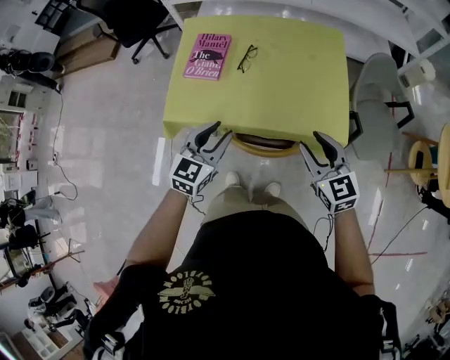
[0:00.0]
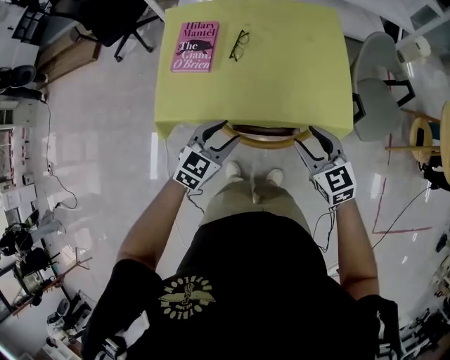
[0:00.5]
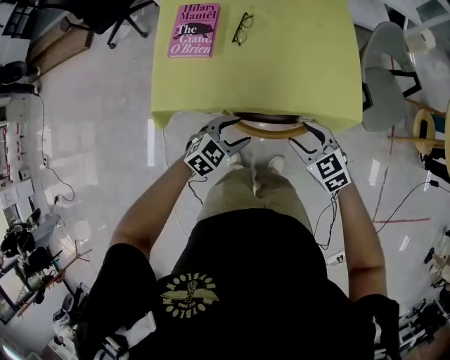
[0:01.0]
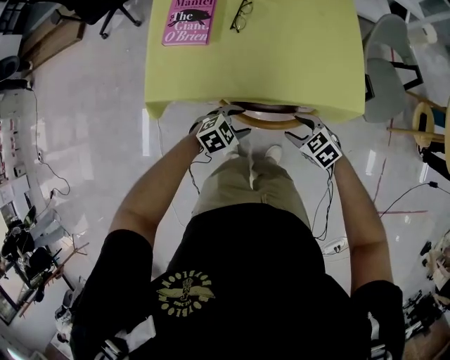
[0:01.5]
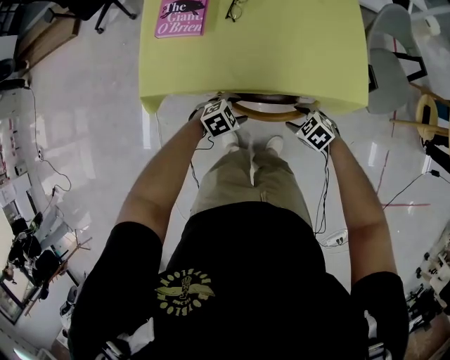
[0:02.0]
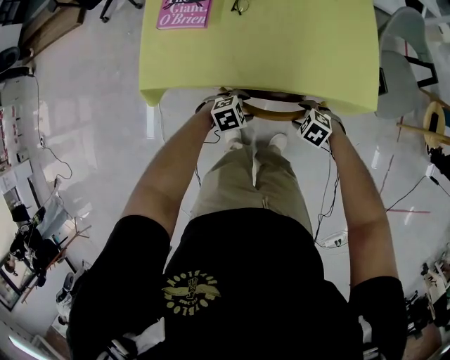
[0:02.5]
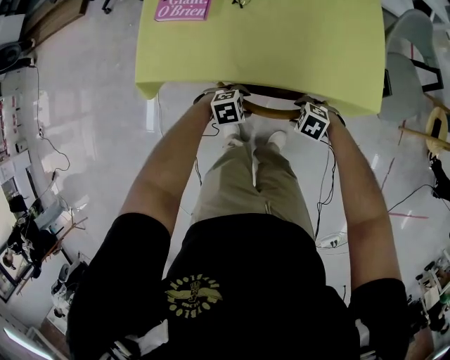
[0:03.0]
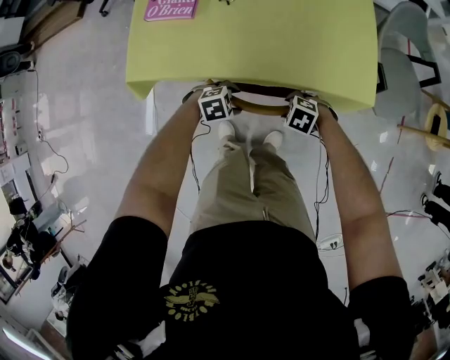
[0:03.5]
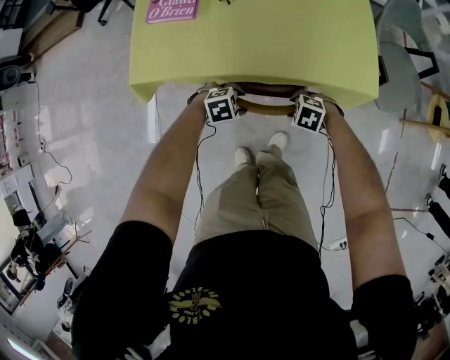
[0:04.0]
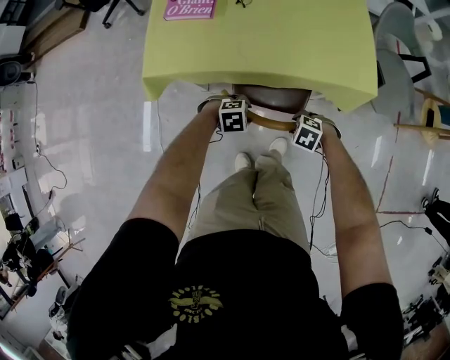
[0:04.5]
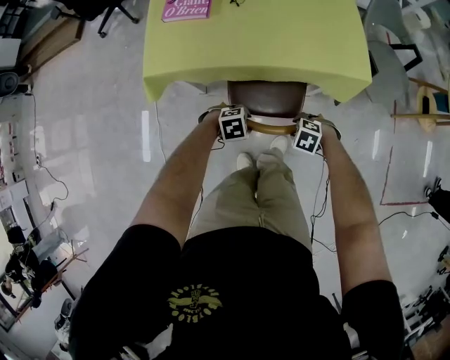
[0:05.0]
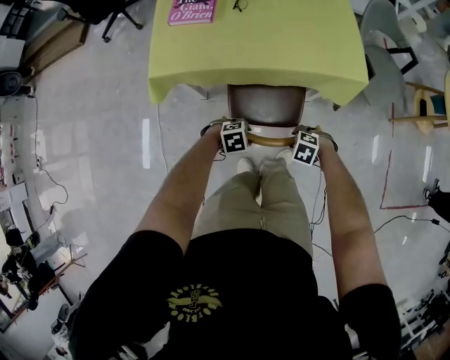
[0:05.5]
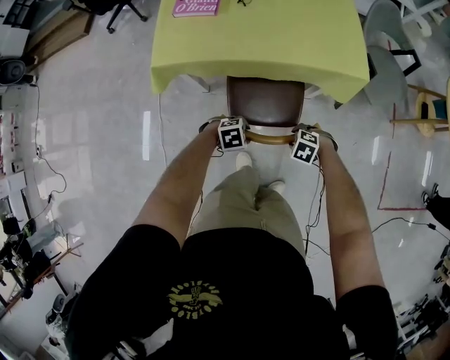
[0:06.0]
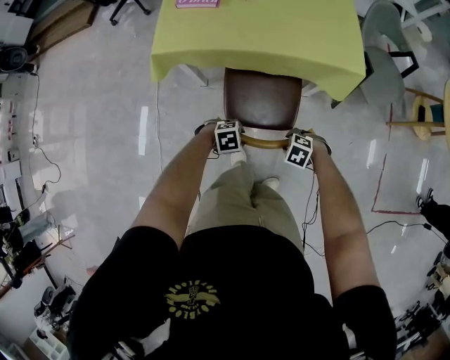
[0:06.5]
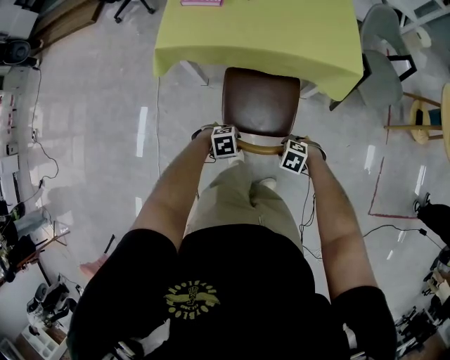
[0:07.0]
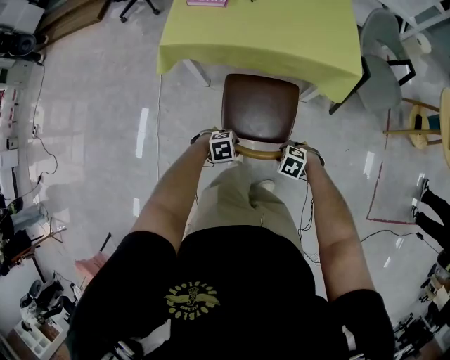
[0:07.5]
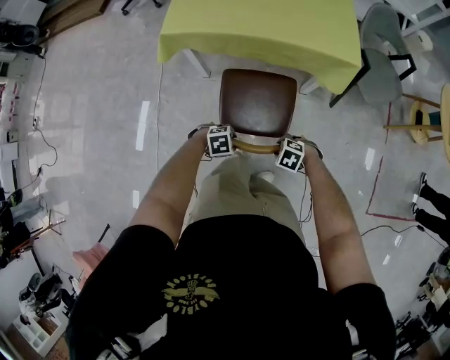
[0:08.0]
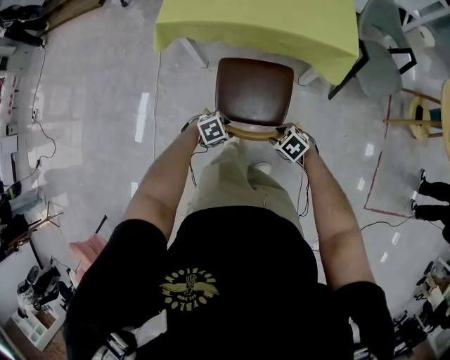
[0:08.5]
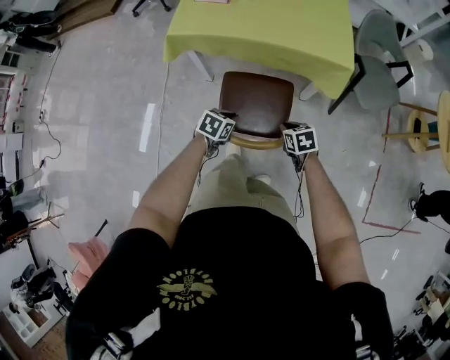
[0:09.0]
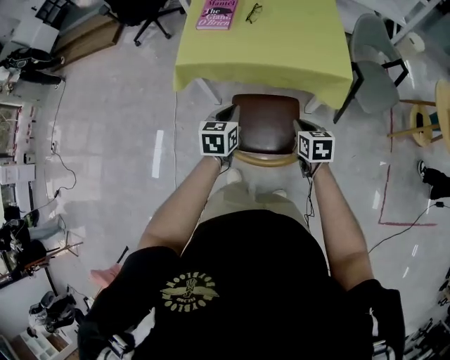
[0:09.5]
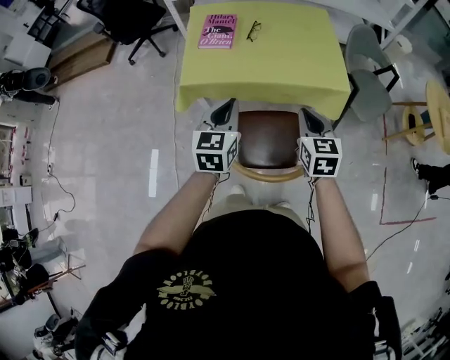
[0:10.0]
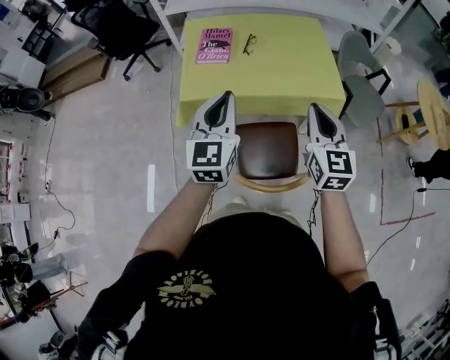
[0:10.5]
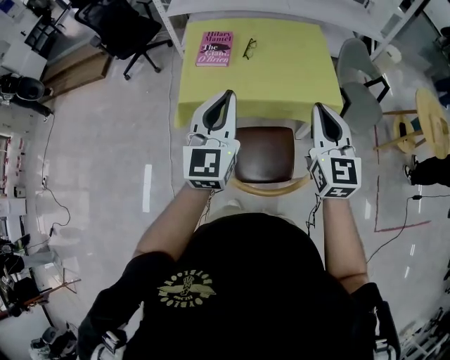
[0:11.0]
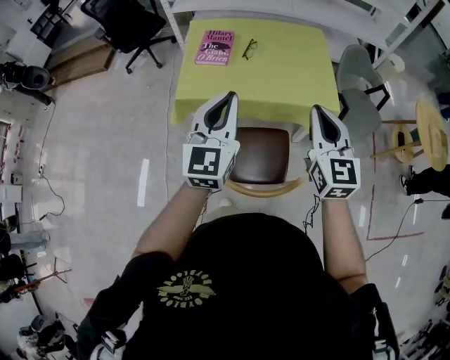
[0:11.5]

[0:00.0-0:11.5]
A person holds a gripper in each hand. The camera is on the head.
0:00.0 to 0:02.0: Both grippers travel together downward, roughly 30 cm. The right gripper tilts its fingers approximately 40 degrees downward. Meanwhile the left gripper angles its fingers downward, by approximately 40 degrees, and opens.
0:02.0 to 0:04.0: The grippers both shift downward by roughly 5 cm. The right gripper turns by some 30 degrees.
0:04.0 to 0:06.0: The left gripper moves about 20 cm, while the right gripper shifts by some 20 cm.
0:06.0 to 0:07.5: The right gripper moves some 15 cm; the left gripper shifts by some 15 cm.
0:07.5 to 0:09.5: The grippers both shift upward by about 25 cm. The left gripper points its fingers about 30 degrees further upward, and closes. Meanwhile the right gripper points its fingers some 30 degrees further upward, and closes up.
0:09.5 to 0:11.5: The grippers both shift upward by about 30 cm. The right gripper points its fingers some 40 degrees further upward. Meanwhile the left gripper points its fingers about 40 degrees further upward.

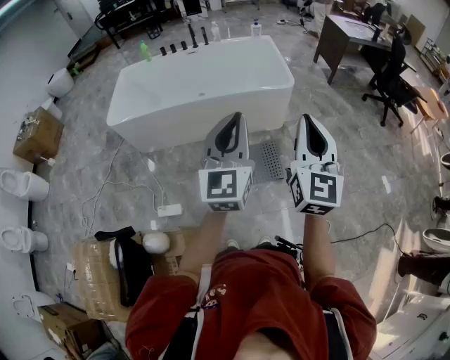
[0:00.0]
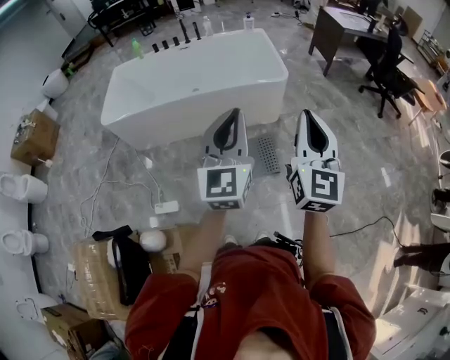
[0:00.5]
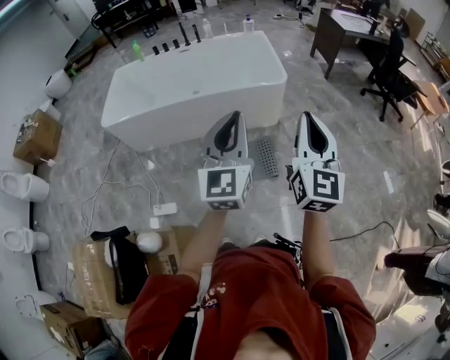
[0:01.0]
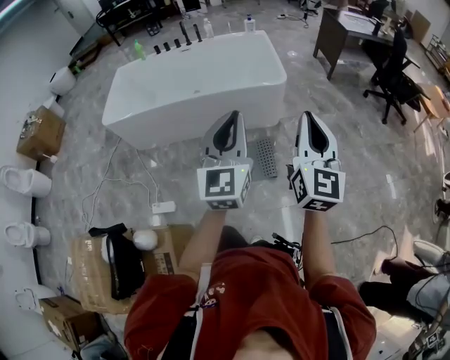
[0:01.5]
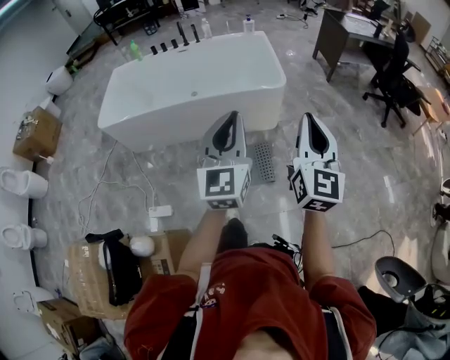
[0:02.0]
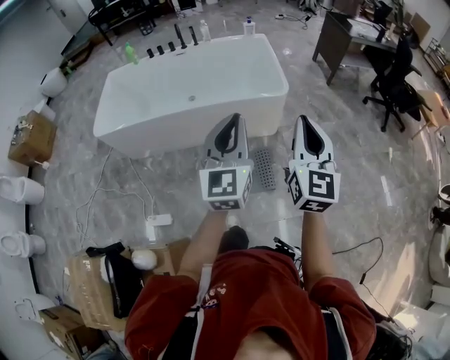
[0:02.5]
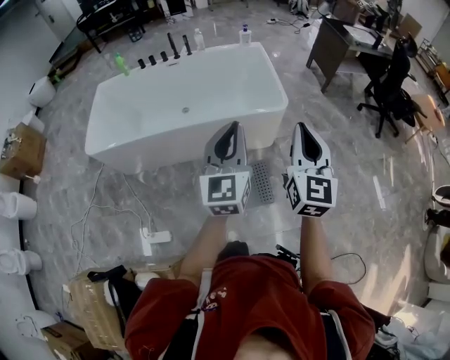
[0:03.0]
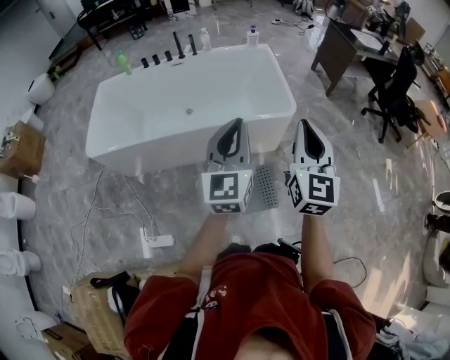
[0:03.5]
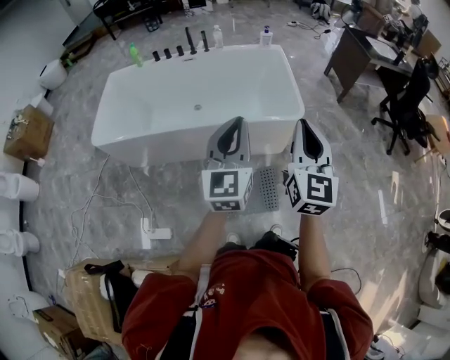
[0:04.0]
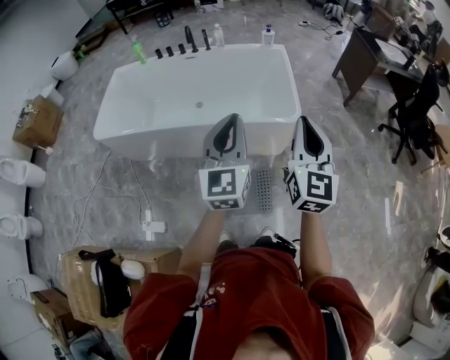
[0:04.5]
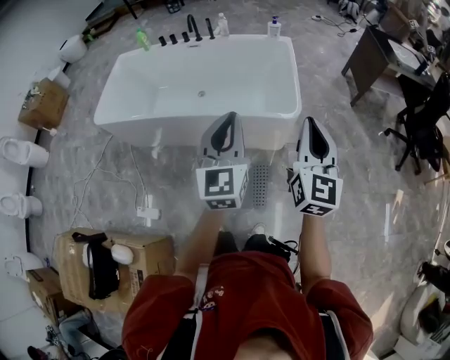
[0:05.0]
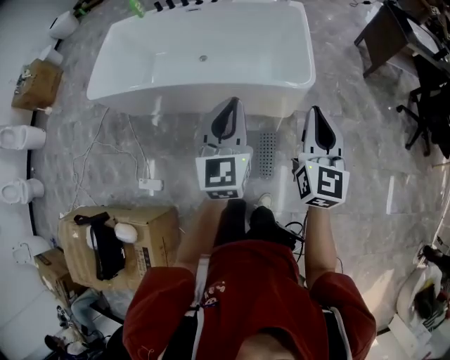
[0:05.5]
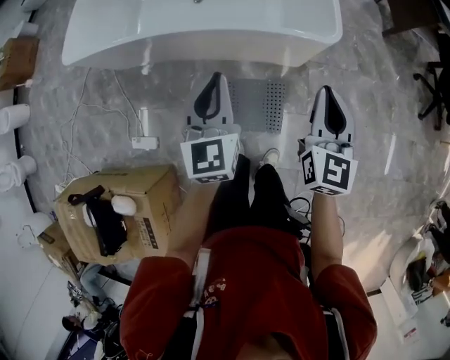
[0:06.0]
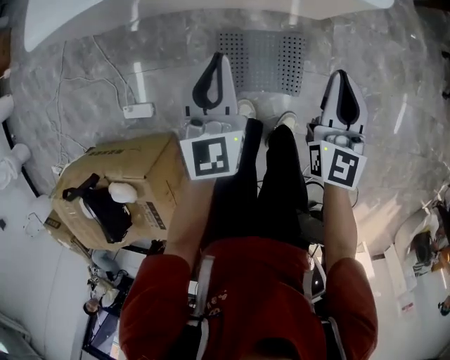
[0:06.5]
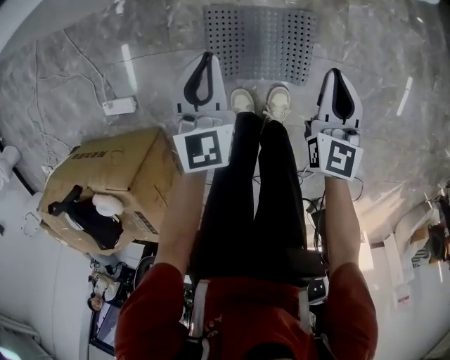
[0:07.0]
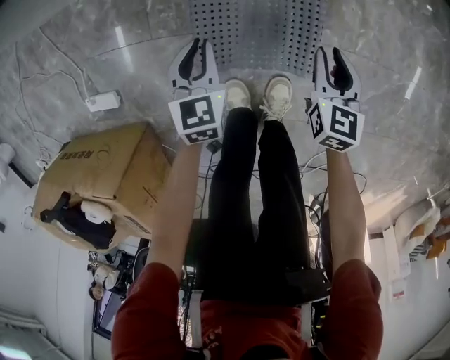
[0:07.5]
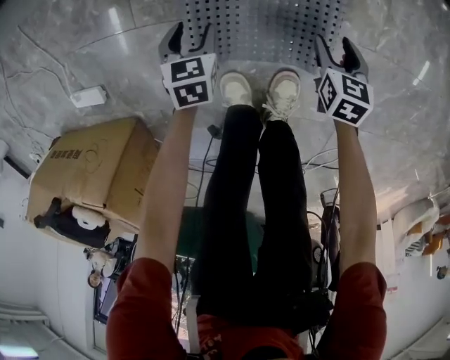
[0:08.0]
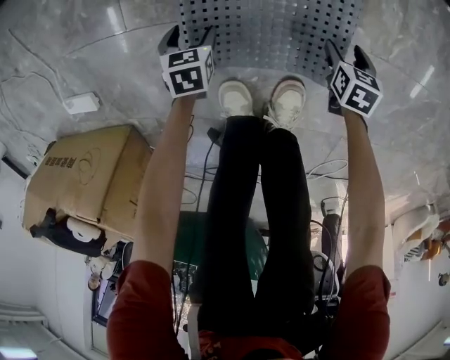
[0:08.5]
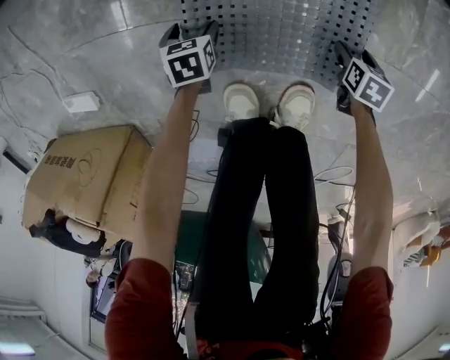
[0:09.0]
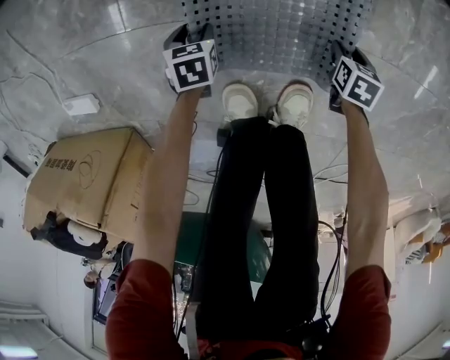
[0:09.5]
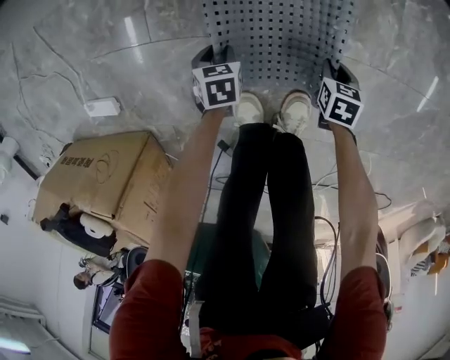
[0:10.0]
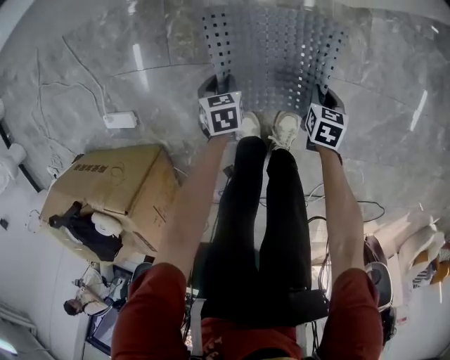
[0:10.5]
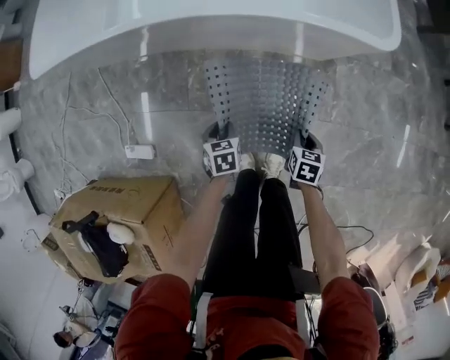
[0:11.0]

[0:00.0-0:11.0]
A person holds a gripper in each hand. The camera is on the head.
0:00.0 to 0:02.0: The left gripper moves forward and to the right, some 10 cm, while the right gripper is displaced to the right and forward by approximately 15 cm.
0:02.0 to 0:03.5: Both grippers travel together forward and to the left, approximately 25 cm.
0:03.5 to 0:05.5: The grippers both shift to the right, downward and forward by some 20 cm.
0:05.5 to 0:07.5: Both grippers travel together downward, about 70 cm. The left gripper tilts its fingers some 40 degrees downward. The right gripper tilts its fingers some 40 degrees downward.
0:07.5 to 0:09.0: The grippers both shift downward by roughly 35 cm. The right gripper points its fingers about 30 degrees further downward, and opens up, while the left gripper turns by roughly 30 degrees, and opens.
0:09.0 to 0:11.0: The two grippers go some 40 cm upward. The right gripper closes up; the left gripper closes its fingers.

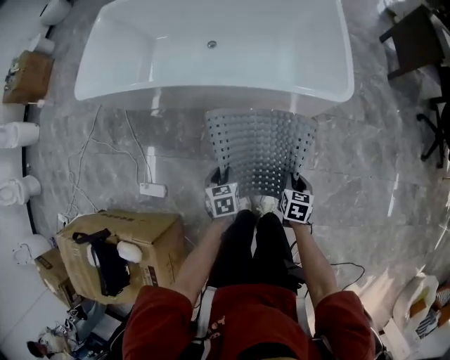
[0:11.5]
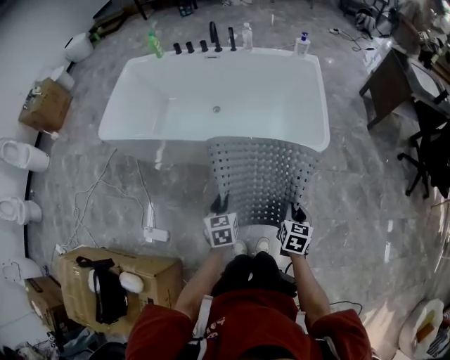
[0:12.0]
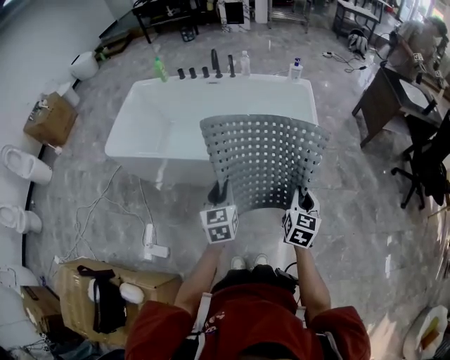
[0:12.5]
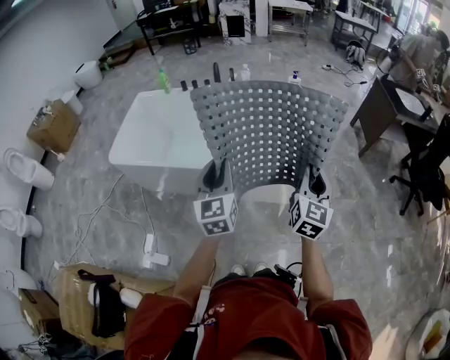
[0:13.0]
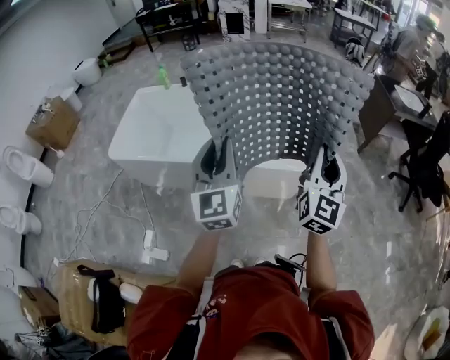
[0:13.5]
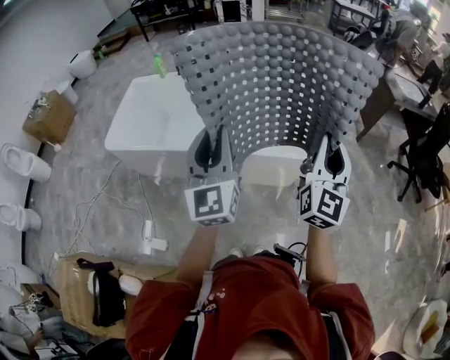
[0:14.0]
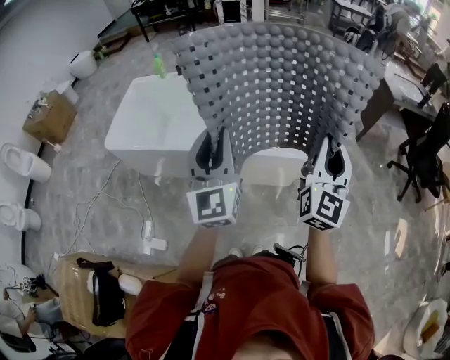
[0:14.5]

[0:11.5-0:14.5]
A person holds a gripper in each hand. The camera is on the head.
0:11.5 to 0:13.0: The grippers both shift upward by about 50 cm. The right gripper tilts its fingers approximately 50 degrees upward, while the left gripper tilts its fingers approximately 50 degrees upward.
0:13.0 to 0:14.5: Both grippers move upward, about 10 cm.

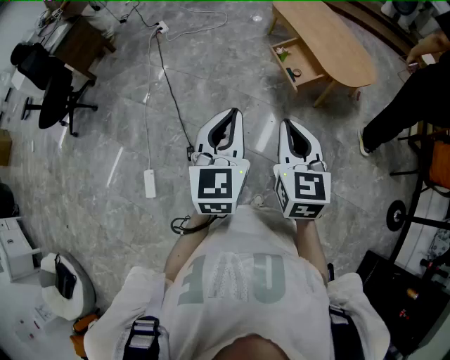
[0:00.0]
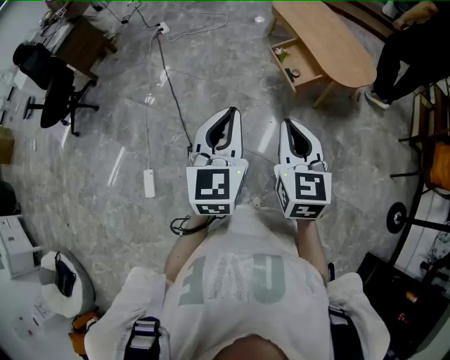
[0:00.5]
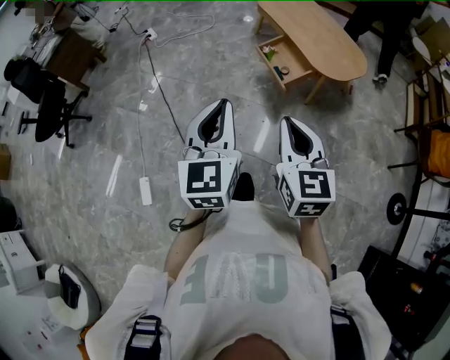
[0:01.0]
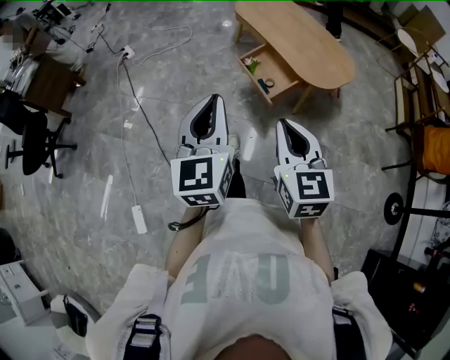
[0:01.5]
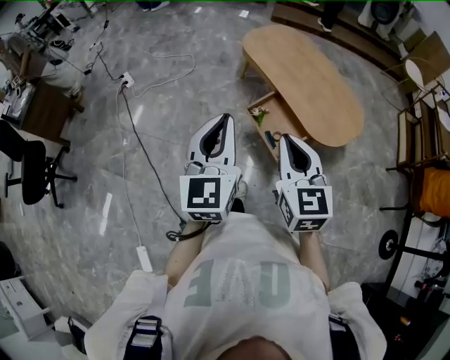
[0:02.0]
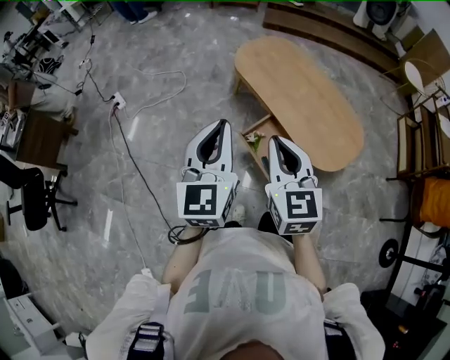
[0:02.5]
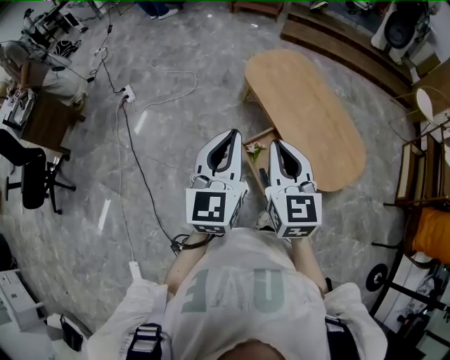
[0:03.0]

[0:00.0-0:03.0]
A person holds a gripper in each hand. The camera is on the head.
0:00.0 to 0:01.5: The right gripper heads forward and to the right, covering approximately 15 cm. The left gripper travels forward by roughly 15 cm.
0:01.5 to 0:03.0: The pair of grippers is taken forward, some 40 cm.
